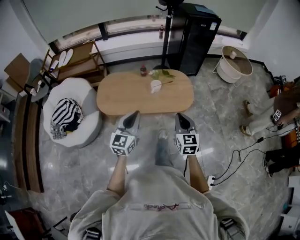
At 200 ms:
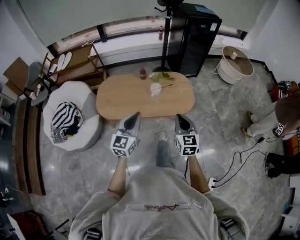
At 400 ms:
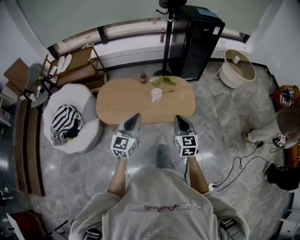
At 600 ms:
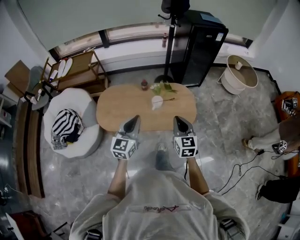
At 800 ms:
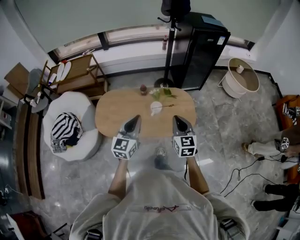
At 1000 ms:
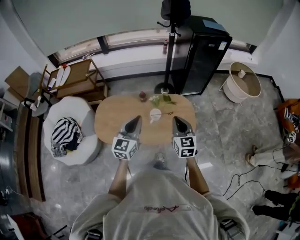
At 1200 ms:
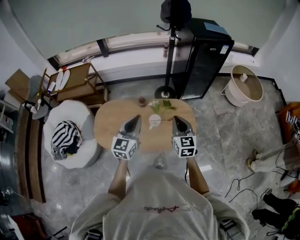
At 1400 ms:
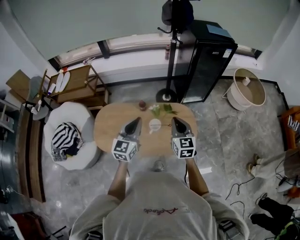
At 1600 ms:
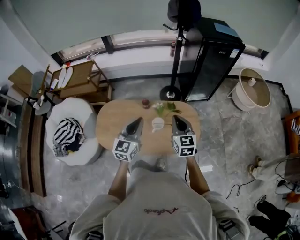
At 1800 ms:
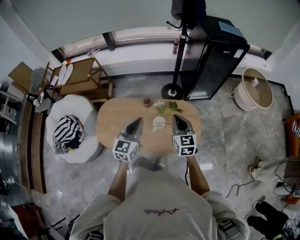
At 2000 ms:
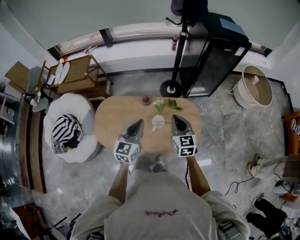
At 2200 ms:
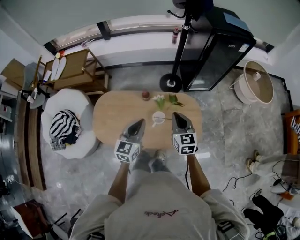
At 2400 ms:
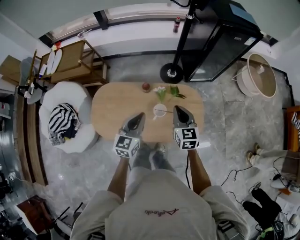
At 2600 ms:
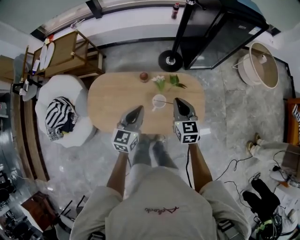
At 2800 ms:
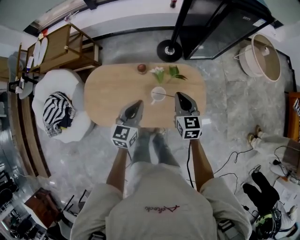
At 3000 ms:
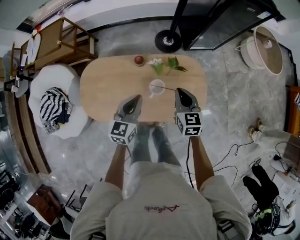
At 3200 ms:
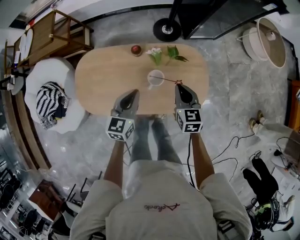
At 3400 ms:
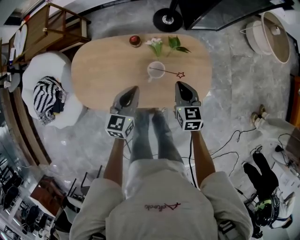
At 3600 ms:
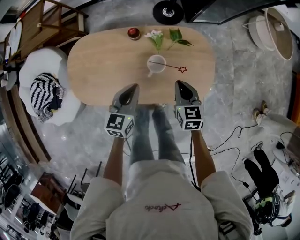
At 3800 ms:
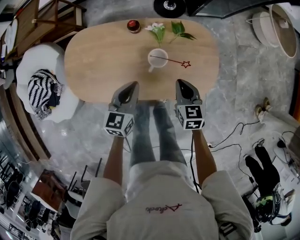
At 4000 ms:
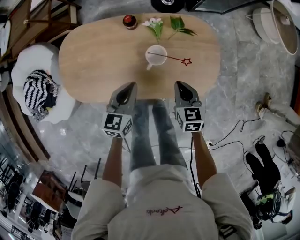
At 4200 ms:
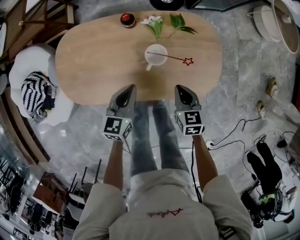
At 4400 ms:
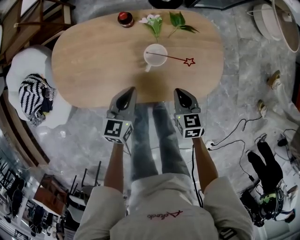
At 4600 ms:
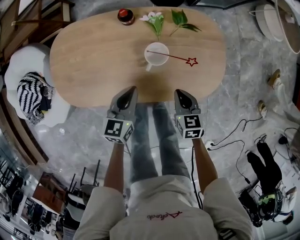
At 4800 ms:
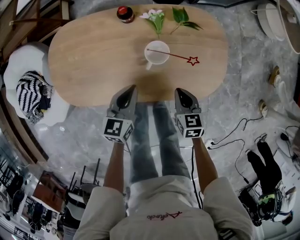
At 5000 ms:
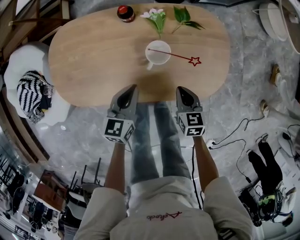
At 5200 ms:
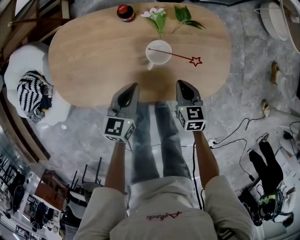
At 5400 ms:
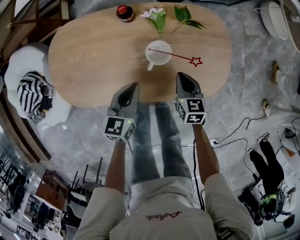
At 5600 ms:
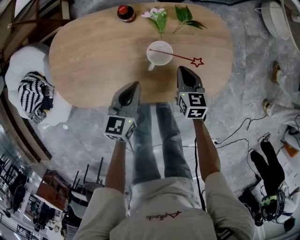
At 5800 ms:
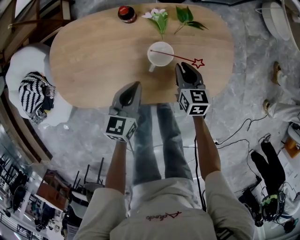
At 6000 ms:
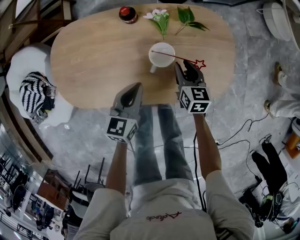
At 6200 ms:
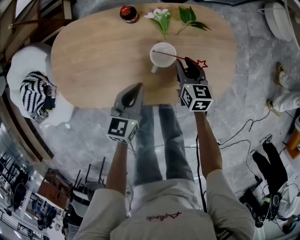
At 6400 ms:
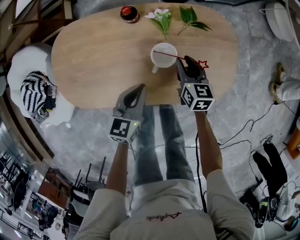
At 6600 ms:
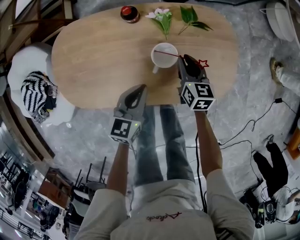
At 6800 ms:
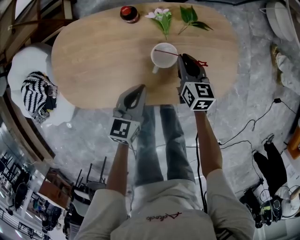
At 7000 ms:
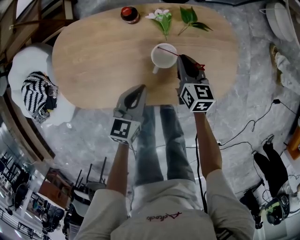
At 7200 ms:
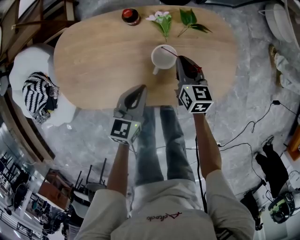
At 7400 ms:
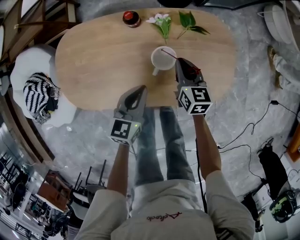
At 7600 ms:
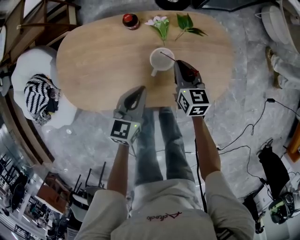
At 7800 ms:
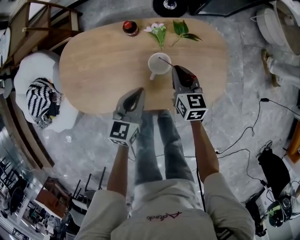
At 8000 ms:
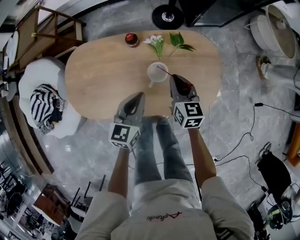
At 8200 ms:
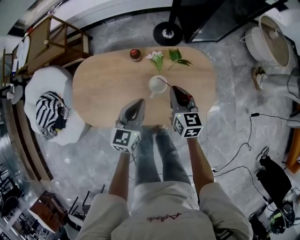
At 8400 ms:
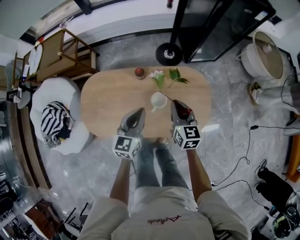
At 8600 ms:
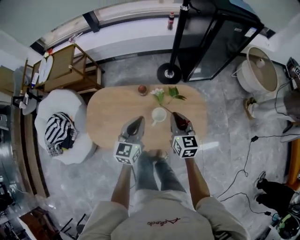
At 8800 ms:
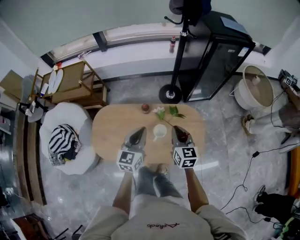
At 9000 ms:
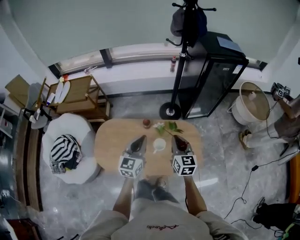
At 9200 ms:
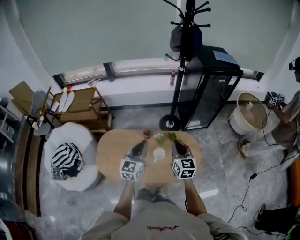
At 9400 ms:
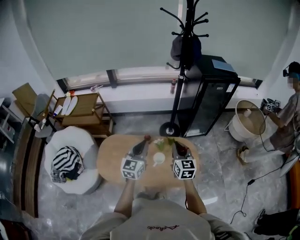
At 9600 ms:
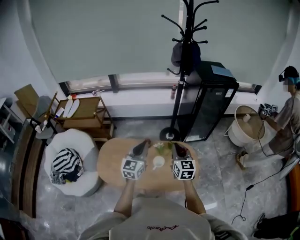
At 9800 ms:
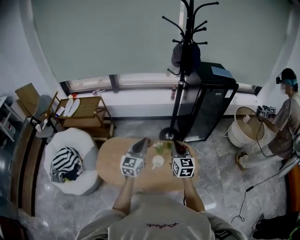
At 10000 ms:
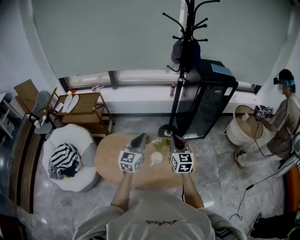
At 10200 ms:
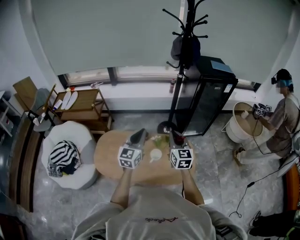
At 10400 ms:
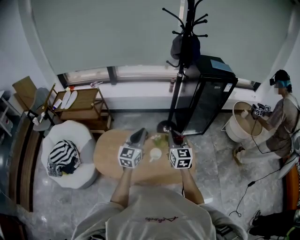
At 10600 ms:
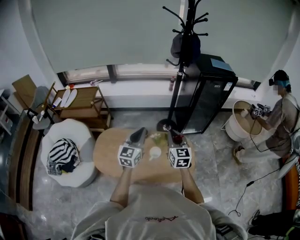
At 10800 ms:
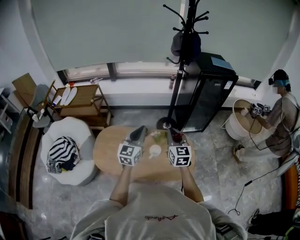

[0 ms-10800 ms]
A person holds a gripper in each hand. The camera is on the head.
0 ms to 1600 ms: The two grippers go some 40 cm forward.
1600 ms to 3000 ms: Both grippers move downward and forward, roughly 20 cm.
3000 ms to 4600 ms: The right gripper travels downward and backward by some 30 cm; the left gripper travels downward by approximately 25 cm.
4600 ms to 6200 ms: The right gripper moves forward, about 15 cm, and opens its fingers.
6200 ms to 7800 ms: The right gripper shifts approximately 10 cm upward, and closes up, while the left gripper moves upward, about 5 cm.
7800 ms to 9200 ms: The two grippers go approximately 40 cm upward. The right gripper turns by some 20 degrees; the left gripper rotates roughly 30 degrees.
9200 ms to 10800 ms: Both grippers travel together upward, some 5 cm.

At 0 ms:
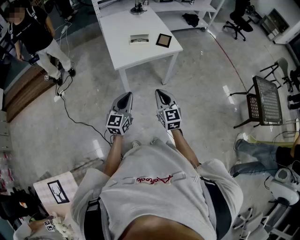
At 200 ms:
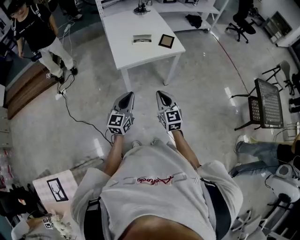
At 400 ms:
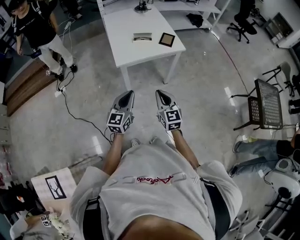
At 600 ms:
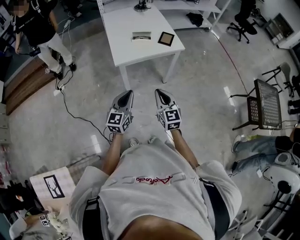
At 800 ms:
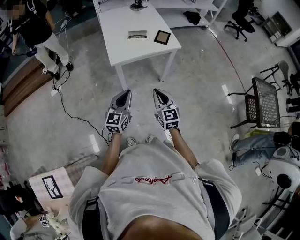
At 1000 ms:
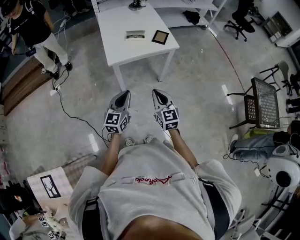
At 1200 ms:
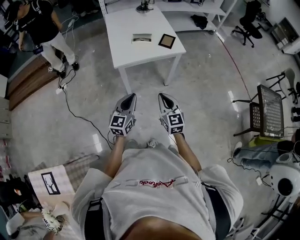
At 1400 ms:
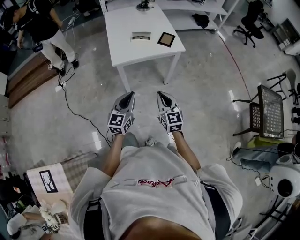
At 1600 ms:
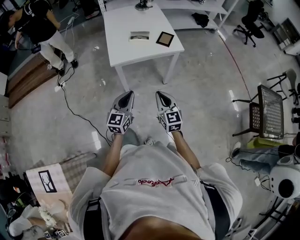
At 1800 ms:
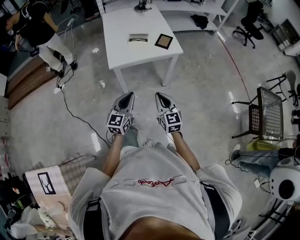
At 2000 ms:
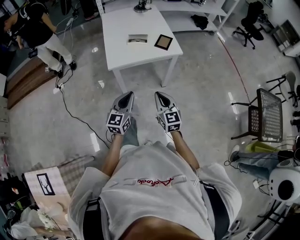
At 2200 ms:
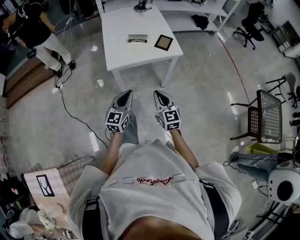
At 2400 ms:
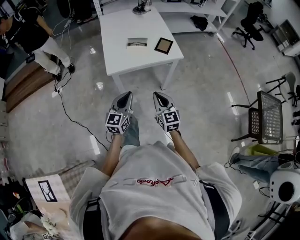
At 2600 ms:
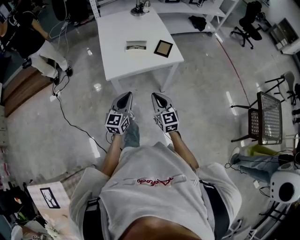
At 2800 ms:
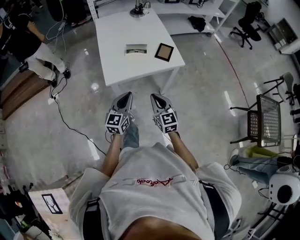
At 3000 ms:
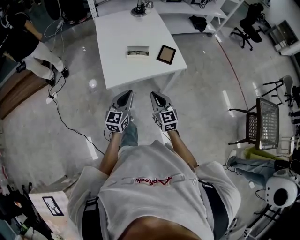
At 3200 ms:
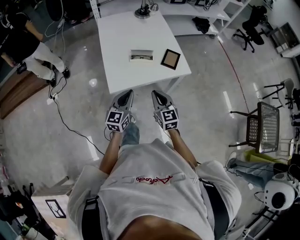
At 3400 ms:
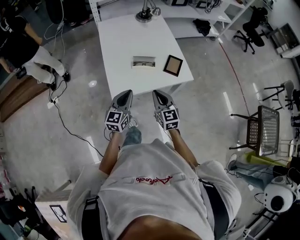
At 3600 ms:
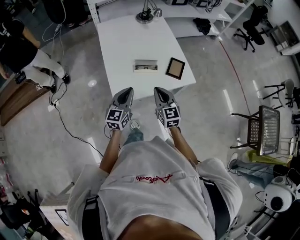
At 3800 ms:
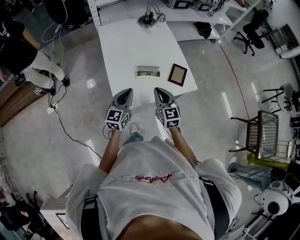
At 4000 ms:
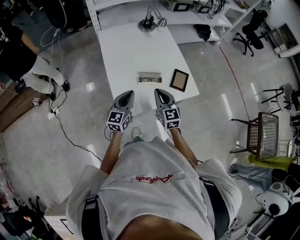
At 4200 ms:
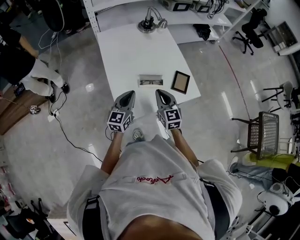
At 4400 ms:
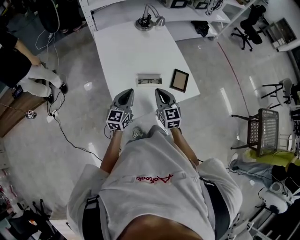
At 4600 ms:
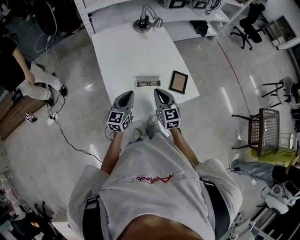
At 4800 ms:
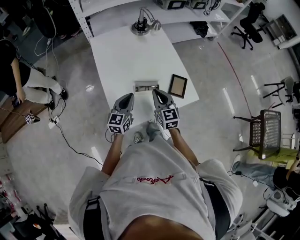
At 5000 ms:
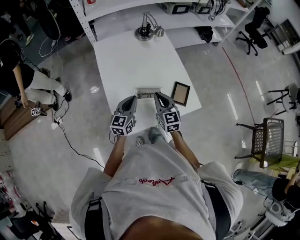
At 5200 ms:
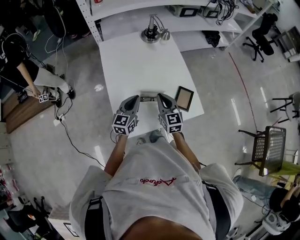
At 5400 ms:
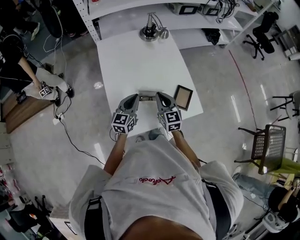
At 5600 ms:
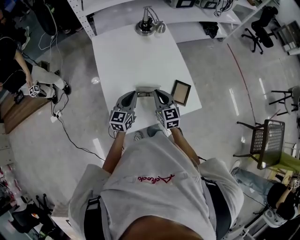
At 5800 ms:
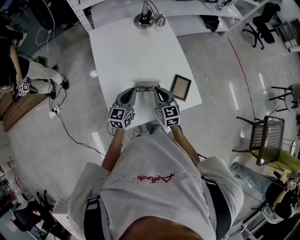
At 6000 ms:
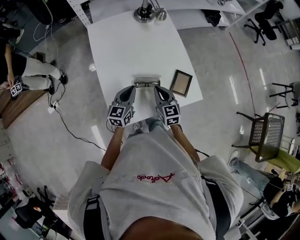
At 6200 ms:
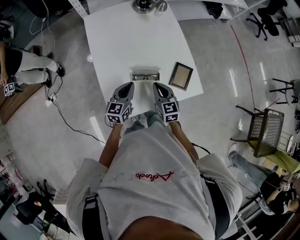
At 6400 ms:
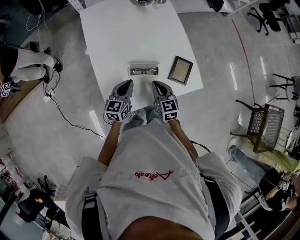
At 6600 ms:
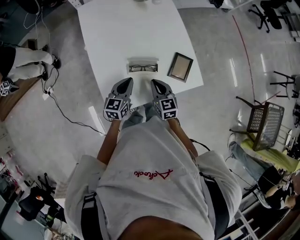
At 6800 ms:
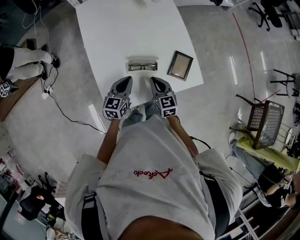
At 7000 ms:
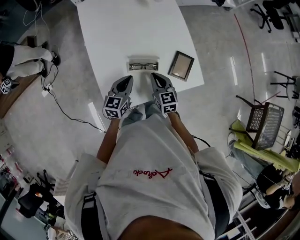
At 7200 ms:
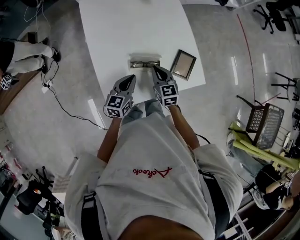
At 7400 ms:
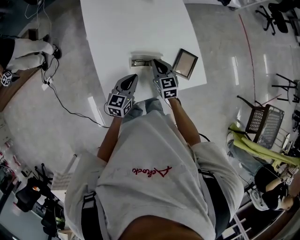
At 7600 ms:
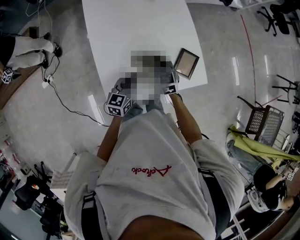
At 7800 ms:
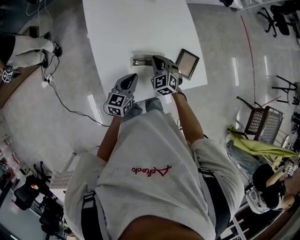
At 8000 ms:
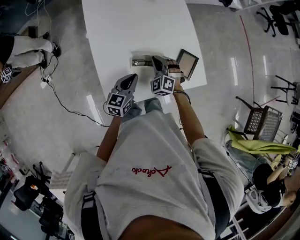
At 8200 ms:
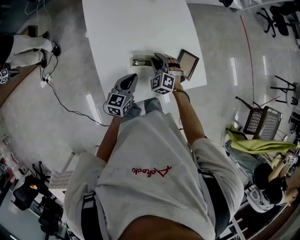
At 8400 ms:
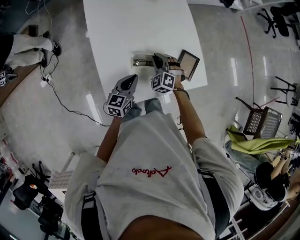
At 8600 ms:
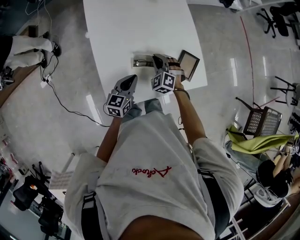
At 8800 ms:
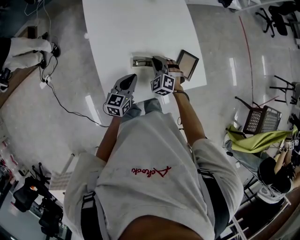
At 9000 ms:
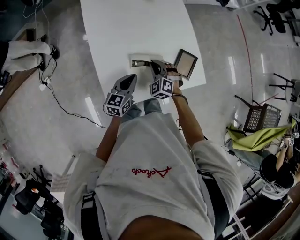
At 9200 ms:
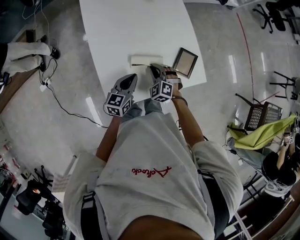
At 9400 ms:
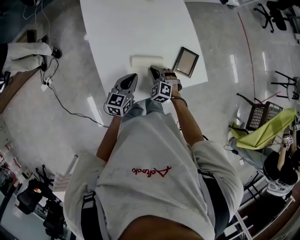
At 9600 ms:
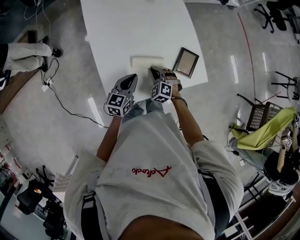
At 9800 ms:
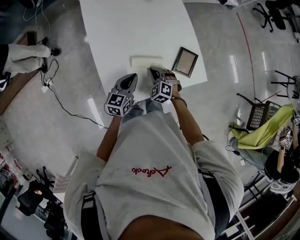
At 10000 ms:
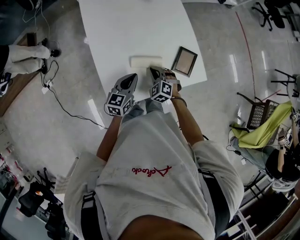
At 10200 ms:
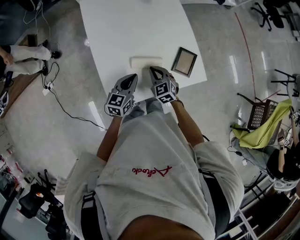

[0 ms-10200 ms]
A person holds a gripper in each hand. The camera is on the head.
0 ms to 1400 ms: The right gripper ends up about 5 cm from where it was, while the left gripper is displaced to the right by about 5 cm.
1400 ms to 3000 ms: The two grippers go approximately 20 cm forward.
3000 ms to 4400 ms: Both grippers travel together forward, about 20 cm.
4400 ms to 5800 ms: The grippers both shift forward by approximately 5 cm.
5800 ms to 7200 ms: The two grippers go about 5 cm downward.
7200 ms to 8800 ms: The right gripper ends up about 5 cm from where it was, rolls counterclockwise, seen from behind, by roughly 50 degrees, and opens and closes again.
8800 ms to 10200 ms: The right gripper shifts roughly 5 cm backward, and changes its angle by roughly 30 degrees.

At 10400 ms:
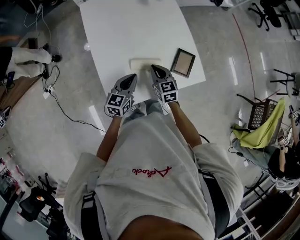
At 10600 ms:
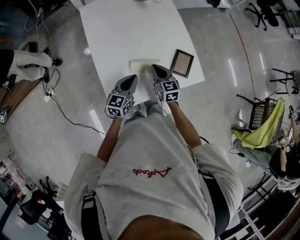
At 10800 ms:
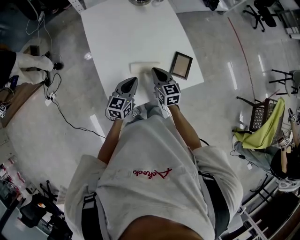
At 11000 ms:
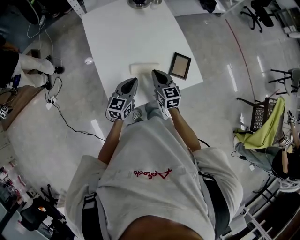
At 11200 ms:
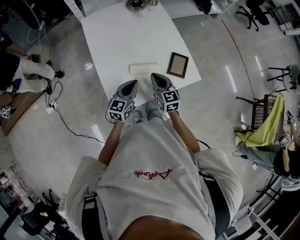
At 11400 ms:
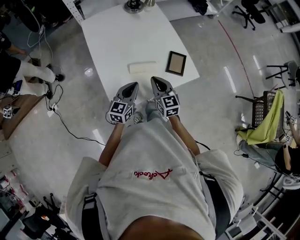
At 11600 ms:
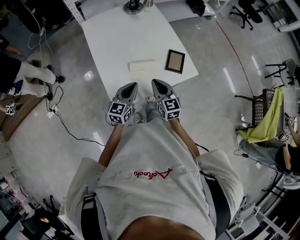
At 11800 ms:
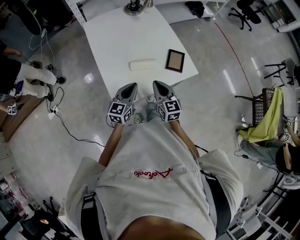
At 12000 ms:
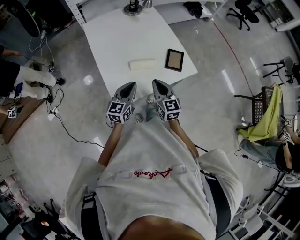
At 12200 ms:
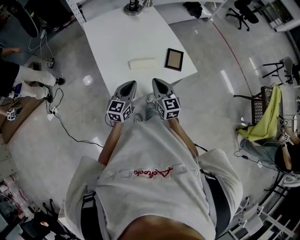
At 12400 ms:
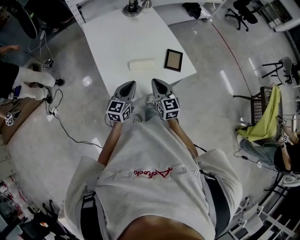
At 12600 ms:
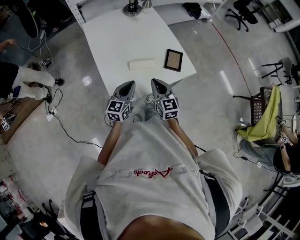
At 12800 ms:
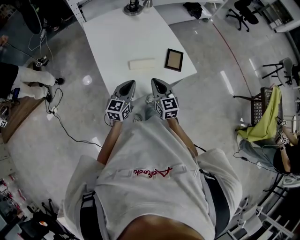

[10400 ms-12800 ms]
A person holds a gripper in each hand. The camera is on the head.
10400 ms to 11600 ms: The left gripper travels backward and upward by some 10 cm. Meanwhile the right gripper travels backward and upward by about 15 cm.
11600 ms to 12800 ms: There are only small adjustments of the grippers.
